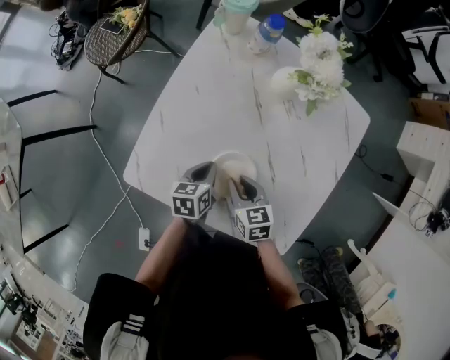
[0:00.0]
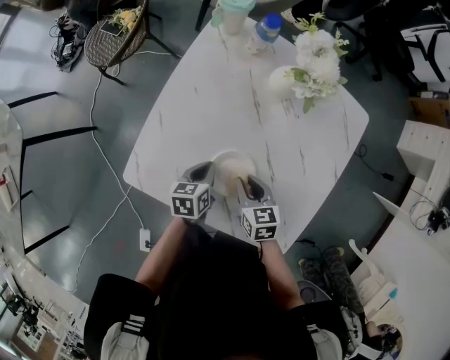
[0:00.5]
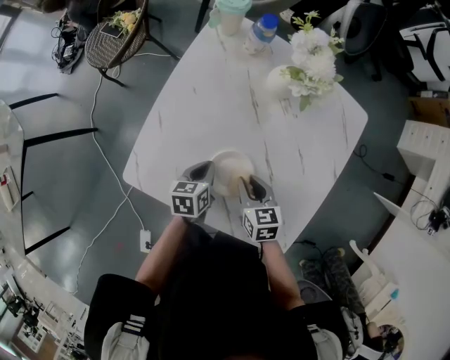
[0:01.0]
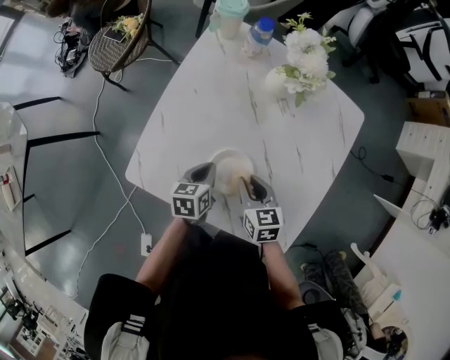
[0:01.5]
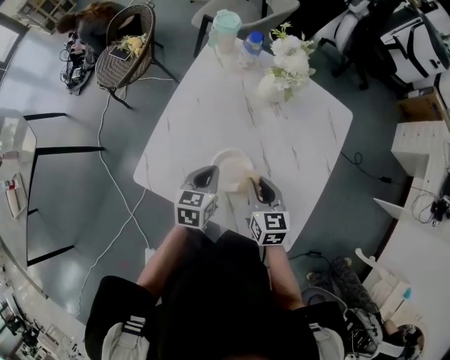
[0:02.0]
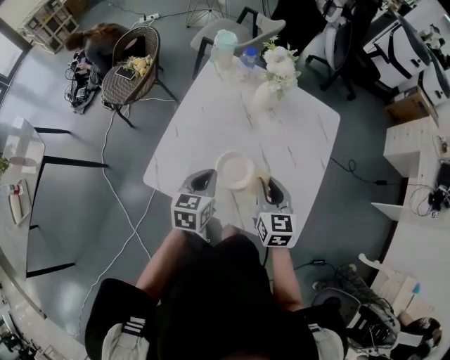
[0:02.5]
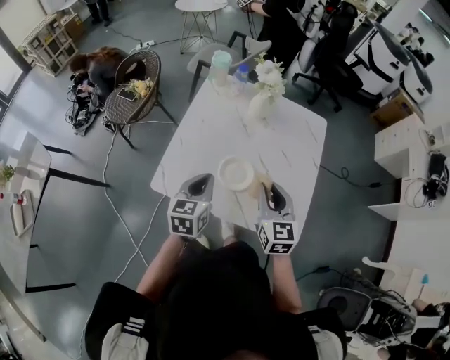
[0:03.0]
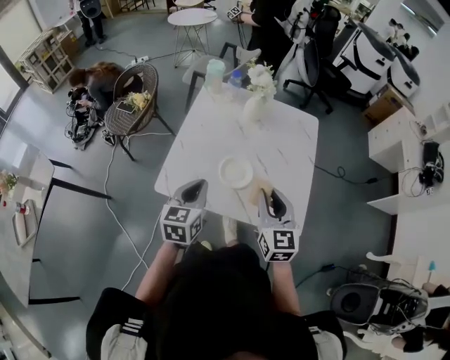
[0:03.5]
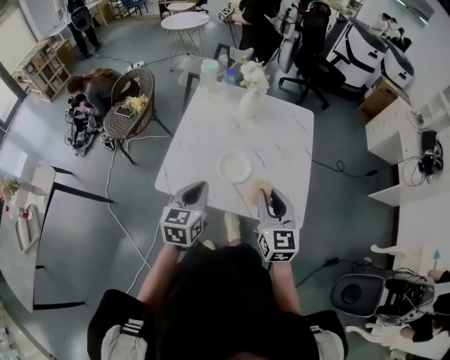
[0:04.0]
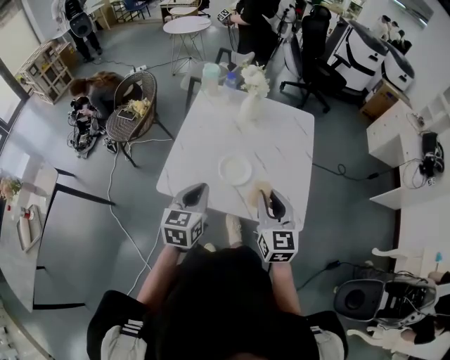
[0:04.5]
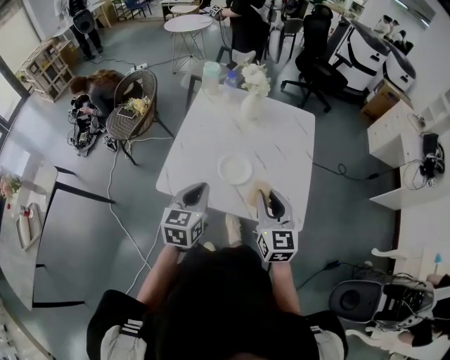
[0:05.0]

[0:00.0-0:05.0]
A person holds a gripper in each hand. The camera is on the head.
0:00.0 to 0:02.5: Both grippers move upward, approximately 15 cm. The right gripper changes its angle by some 30 degrees, while the left gripper changes its angle by approximately 20 degrees.
0:02.5 to 0:05.0: The two grippers go approximately 20 cm backward and upward.

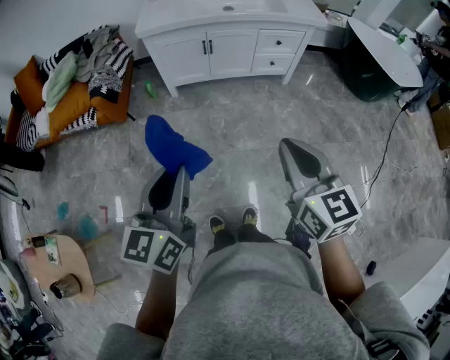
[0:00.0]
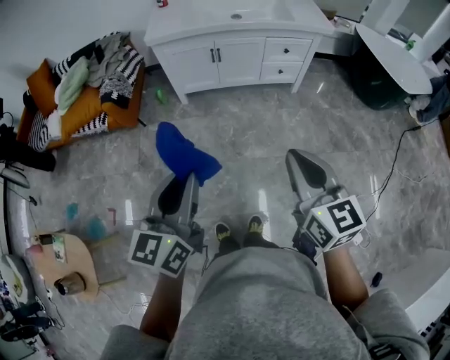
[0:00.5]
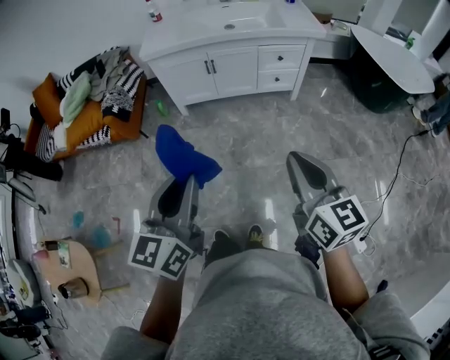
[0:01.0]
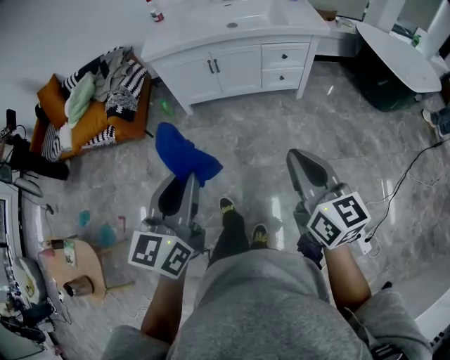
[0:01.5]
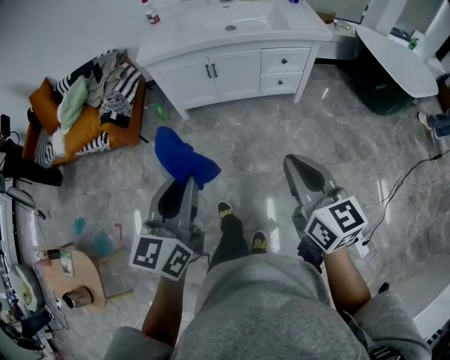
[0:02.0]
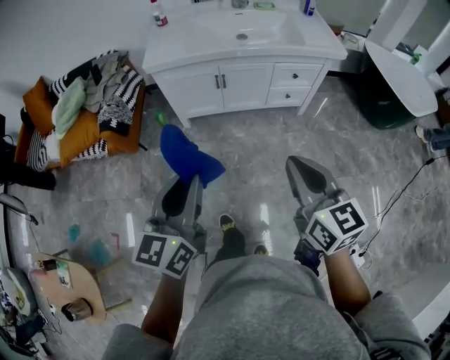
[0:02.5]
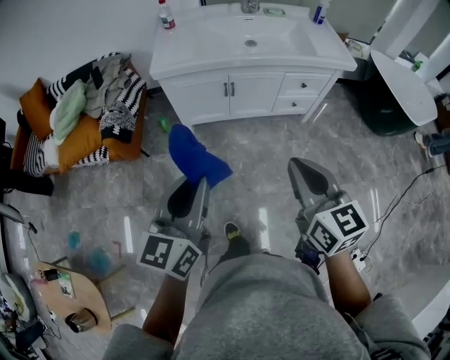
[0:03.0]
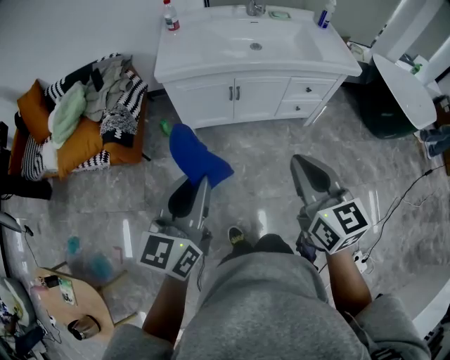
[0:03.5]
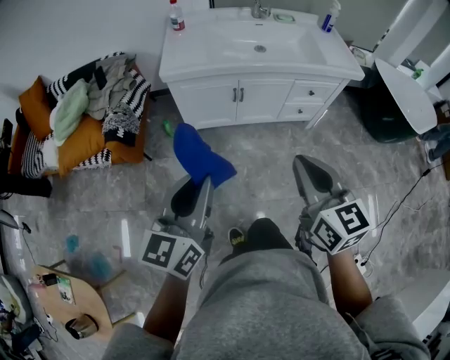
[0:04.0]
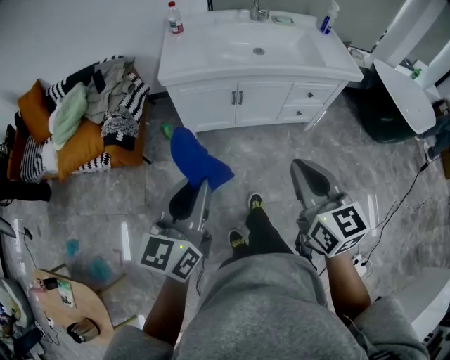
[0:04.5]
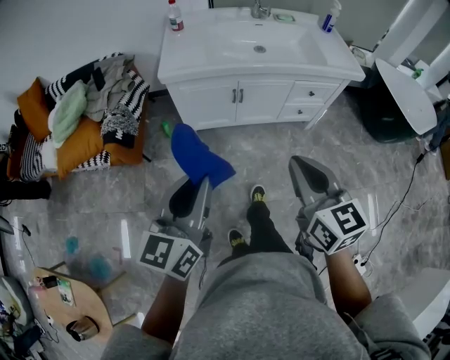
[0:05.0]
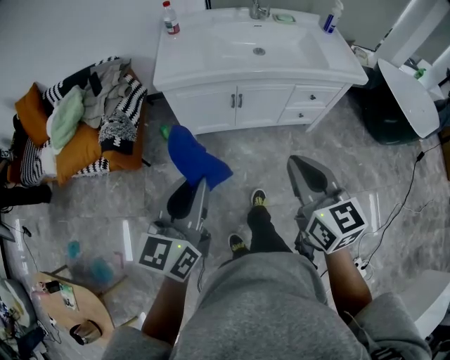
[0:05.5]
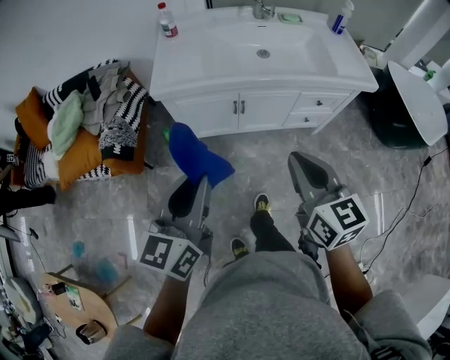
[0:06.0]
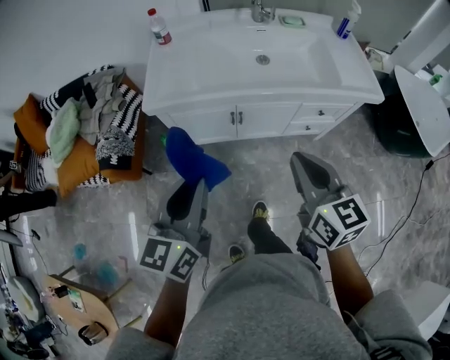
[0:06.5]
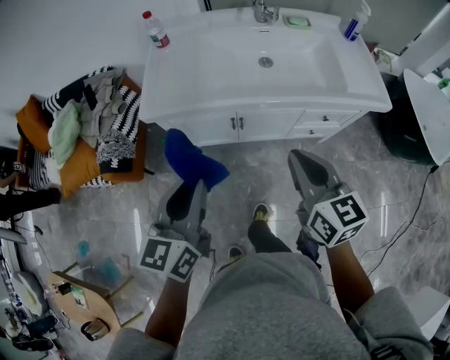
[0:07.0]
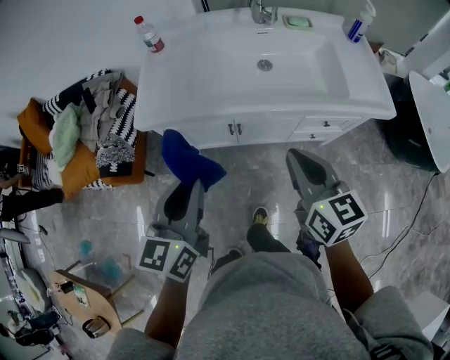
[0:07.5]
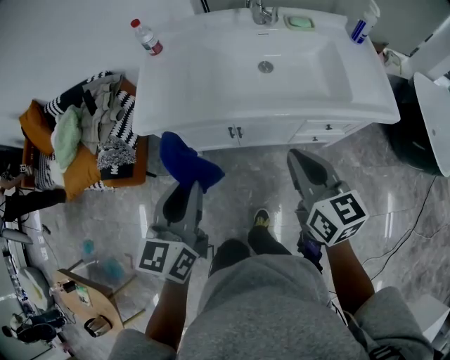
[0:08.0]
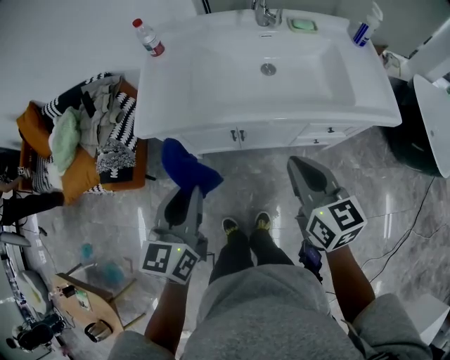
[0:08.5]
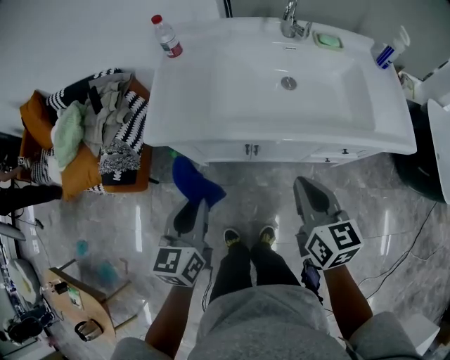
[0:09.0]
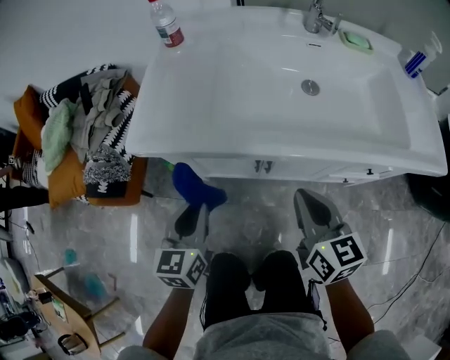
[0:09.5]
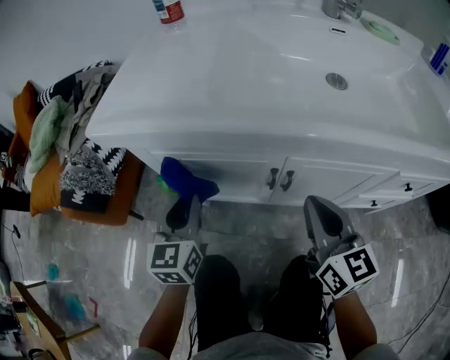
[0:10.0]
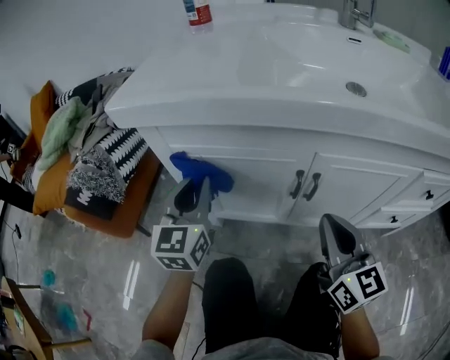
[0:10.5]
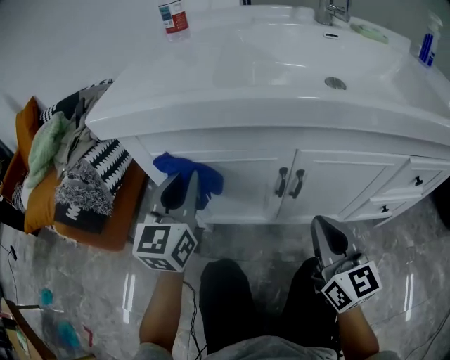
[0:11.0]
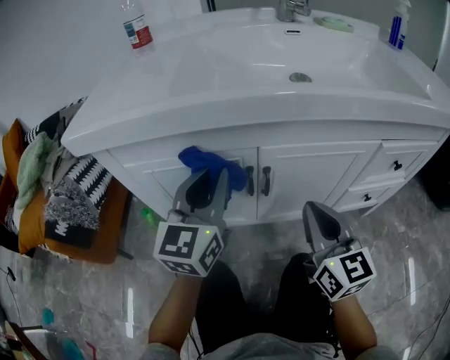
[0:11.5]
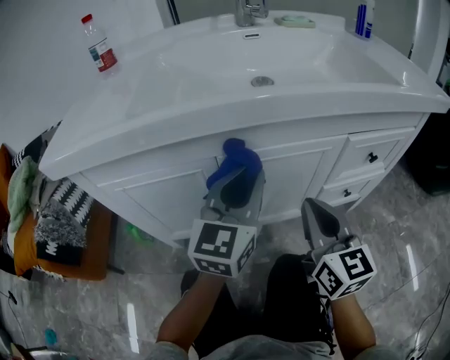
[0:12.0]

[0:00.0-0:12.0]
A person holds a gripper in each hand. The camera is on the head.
0:00.0 to 0:02.0: The two grippers go about 10 cm to the right and forward.
0:02.0 to 0:04.0: Both grippers move forward and to the left, approximately 25 cm.
0:04.0 to 0:06.0: The two grippers go some 15 cm forward.
0:06.0 to 0:08.0: Both grippers travel together forward and to the right, roughly 20 cm.
0:08.0 to 0:10.0: The right gripper travels downward by some 35 cm. The left gripper moves downward and forward, about 40 cm.
0:10.0 to 0:12.0: The left gripper ends up approximately 30 cm from where it was, and turns by about 40 degrees. Meanwhile the right gripper shifts by roughly 10 cm.

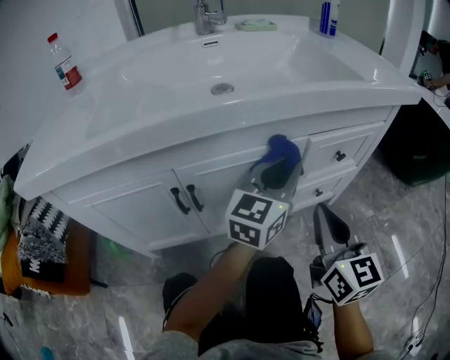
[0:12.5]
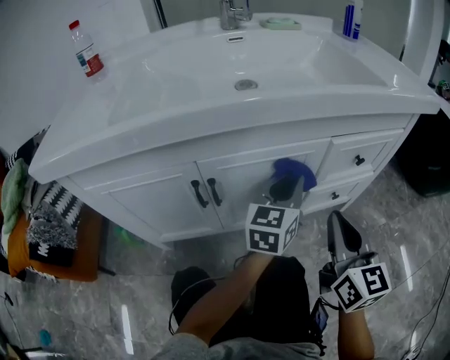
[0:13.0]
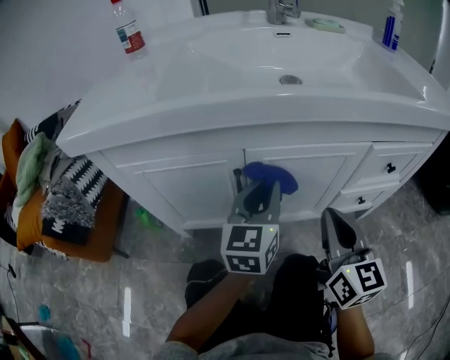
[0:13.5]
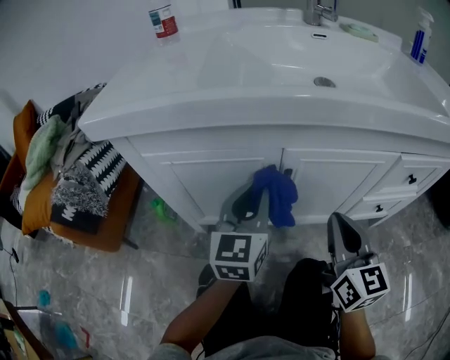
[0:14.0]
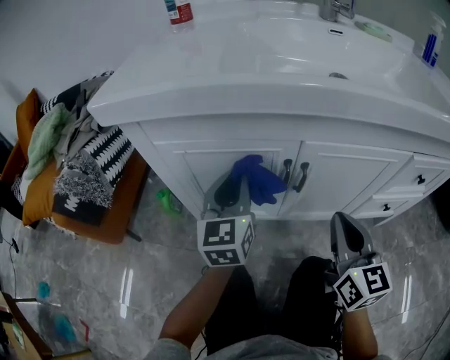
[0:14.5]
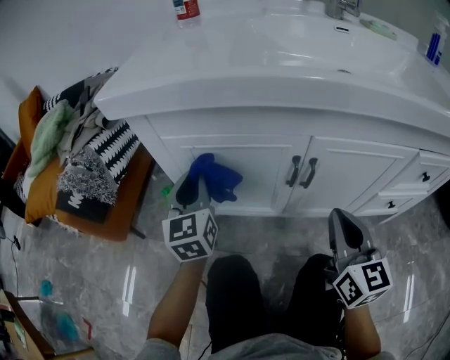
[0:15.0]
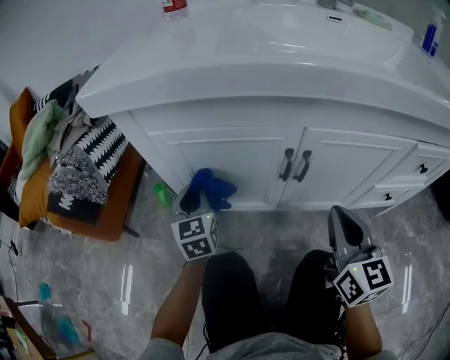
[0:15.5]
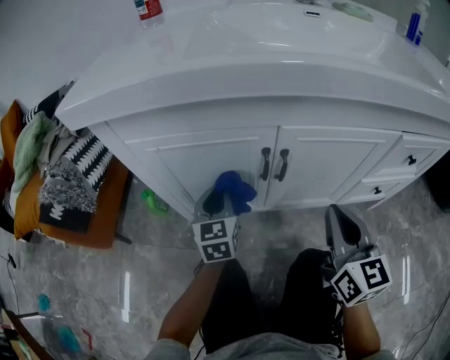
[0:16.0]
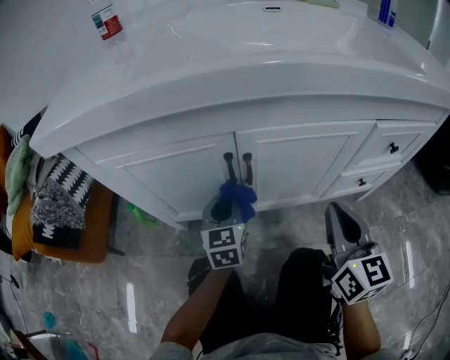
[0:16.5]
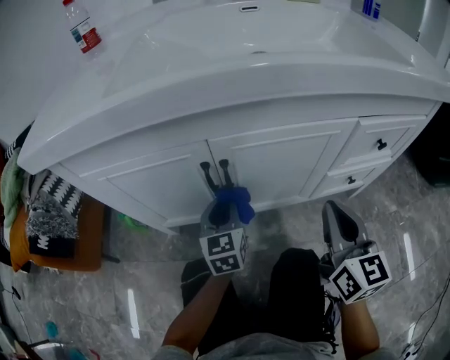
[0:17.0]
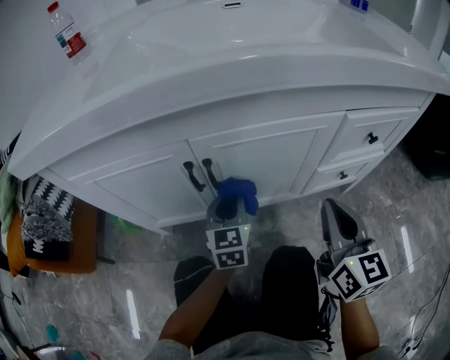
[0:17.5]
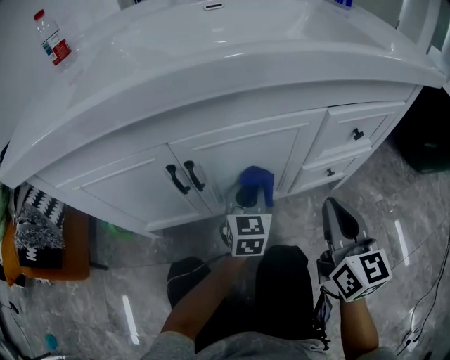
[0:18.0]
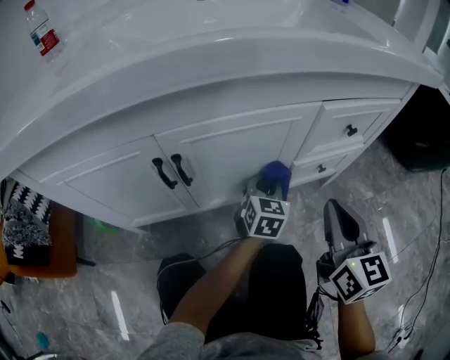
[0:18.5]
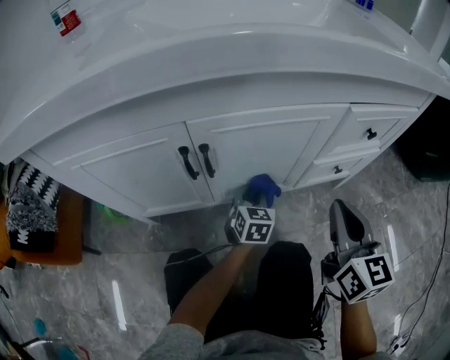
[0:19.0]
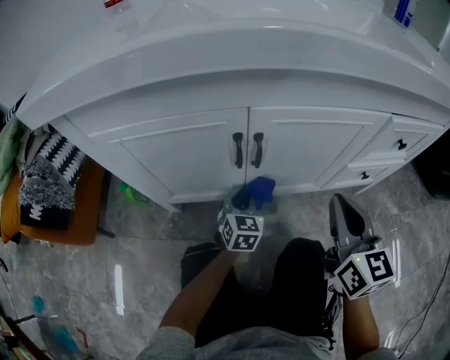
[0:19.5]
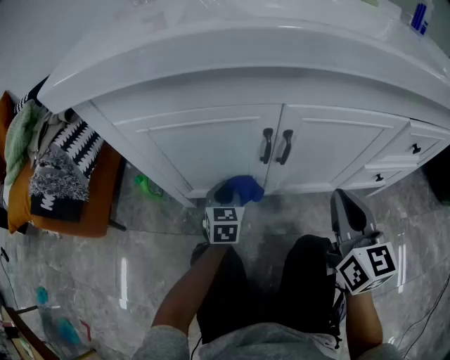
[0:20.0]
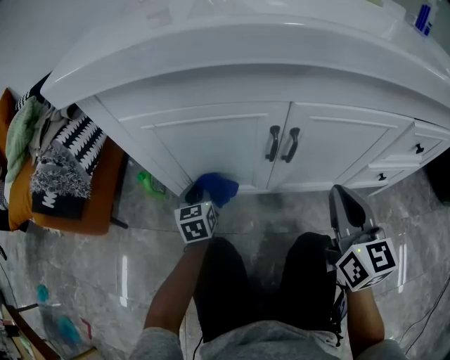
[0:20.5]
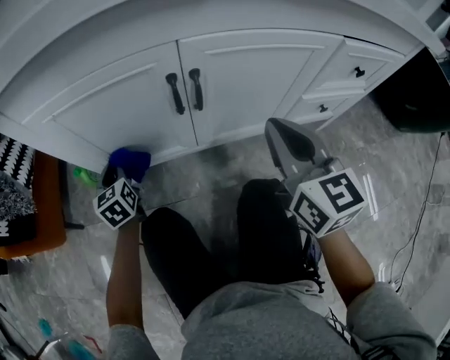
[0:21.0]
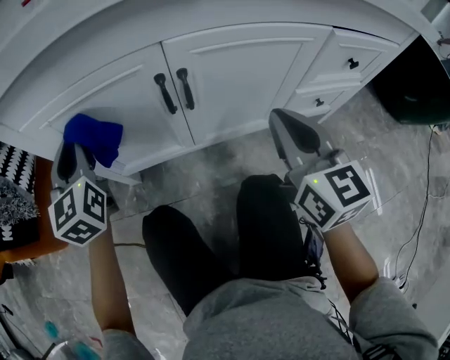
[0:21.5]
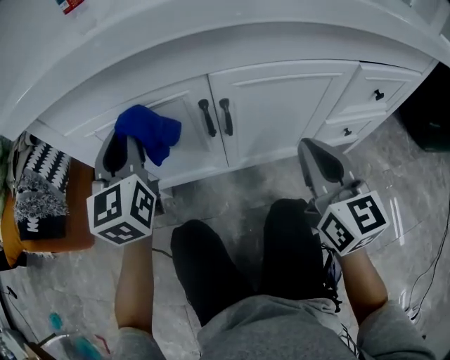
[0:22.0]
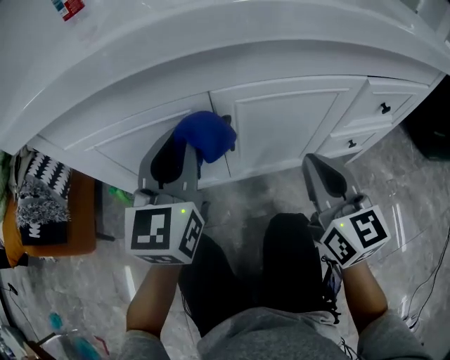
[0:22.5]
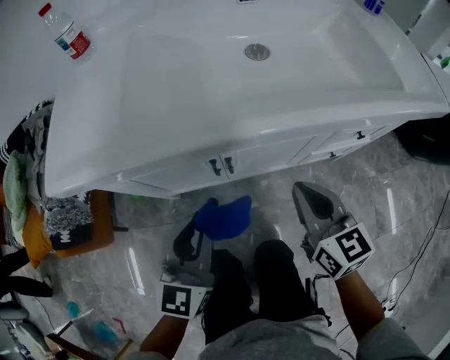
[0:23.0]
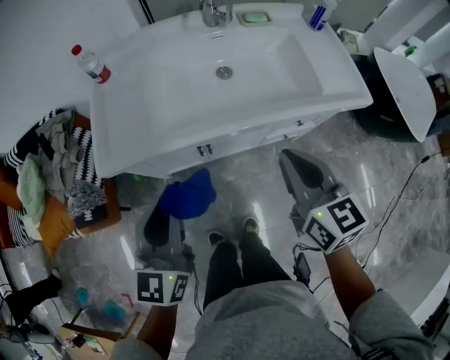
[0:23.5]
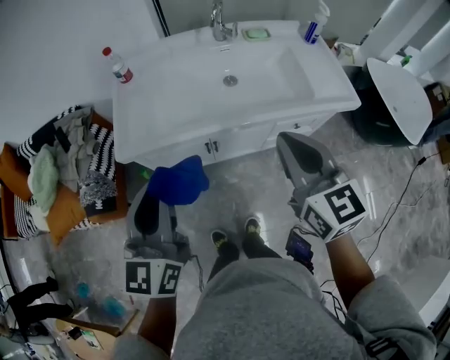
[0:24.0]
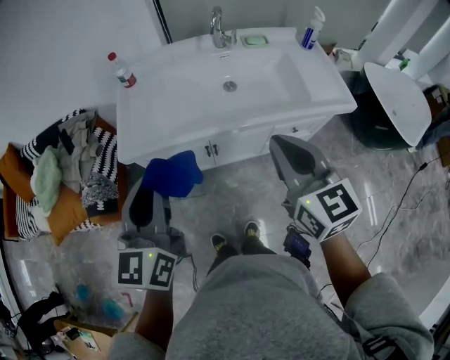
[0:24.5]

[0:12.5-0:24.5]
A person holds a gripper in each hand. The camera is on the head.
0:12.5 to 0:14.5: The right gripper ends up some 20 cm from where it was; the left gripper changes place by about 40 cm, and turns by roughly 50 degrees.
0:14.5 to 0:16.5: The right gripper heads to the right, covering roughly 10 cm; the left gripper travels downward and to the right by about 15 cm.
0:16.5 to 0:18.5: The left gripper is displaced to the right by about 30 cm, and swivels roughly 30 degrees. The right gripper shifts about 10 cm to the right.
0:18.5 to 0:20.5: The right gripper ends up approximately 20 cm from where it was. Meanwhile the left gripper ends up approximately 50 cm from where it was, and changes its angle by approximately 40 degrees.
0:20.5 to 0:22.5: The left gripper is displaced upward and to the right by approximately 30 cm, and rotates some 40 degrees.
0:22.5 to 0:24.5: Both grippers move upward, roughly 50 cm.
